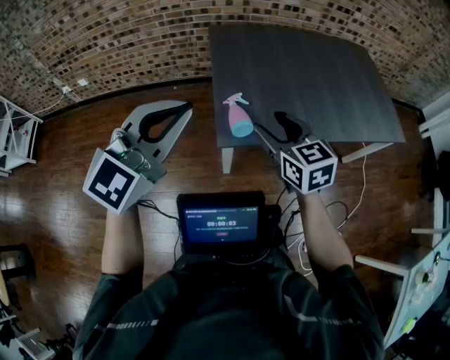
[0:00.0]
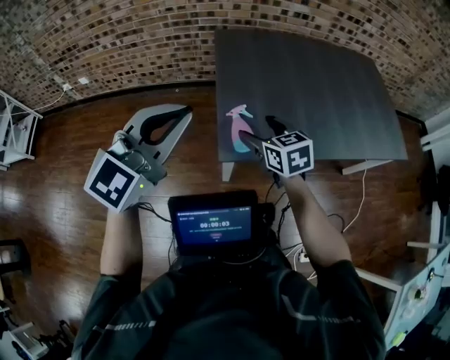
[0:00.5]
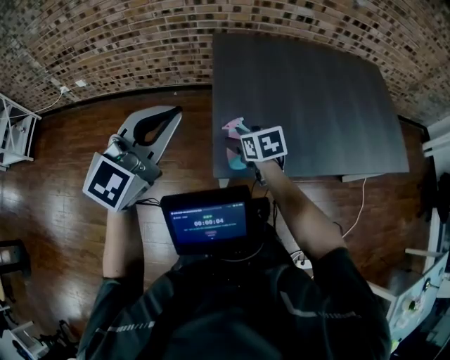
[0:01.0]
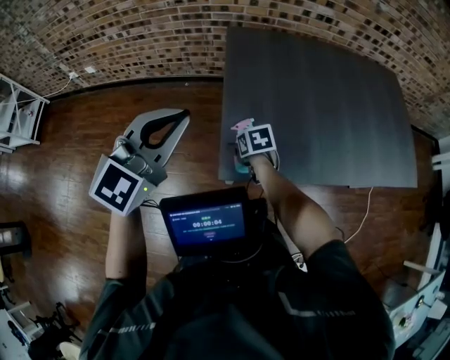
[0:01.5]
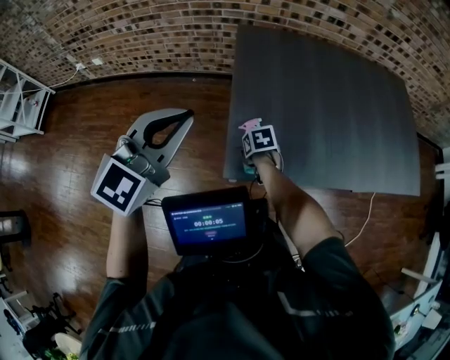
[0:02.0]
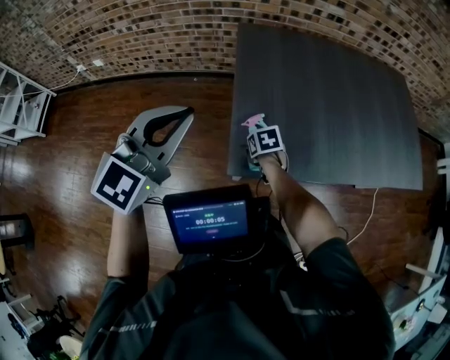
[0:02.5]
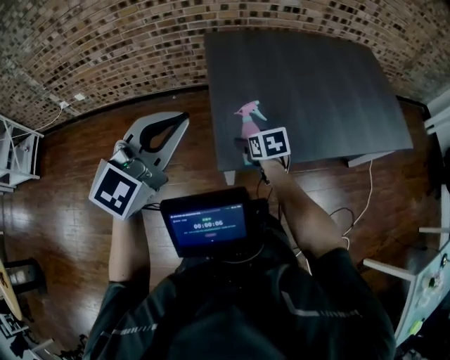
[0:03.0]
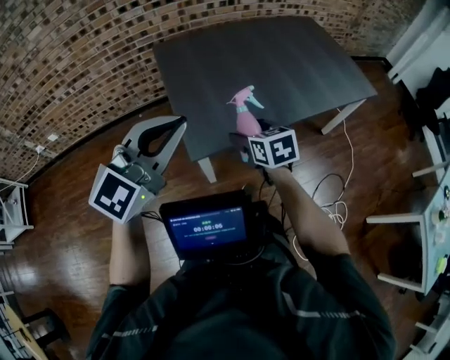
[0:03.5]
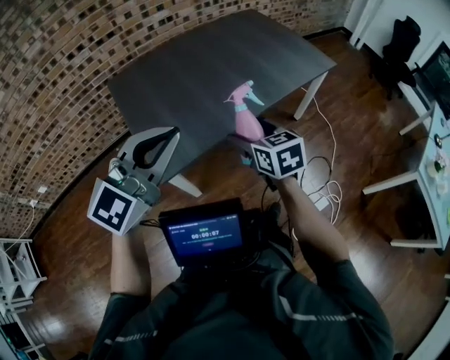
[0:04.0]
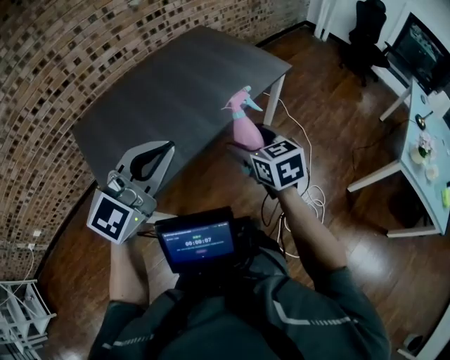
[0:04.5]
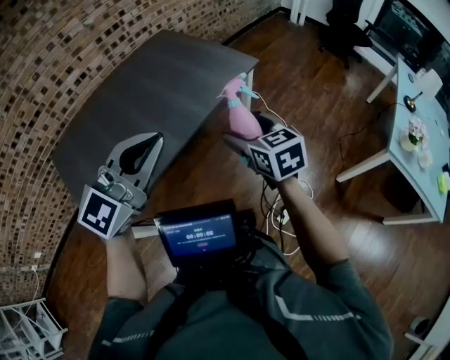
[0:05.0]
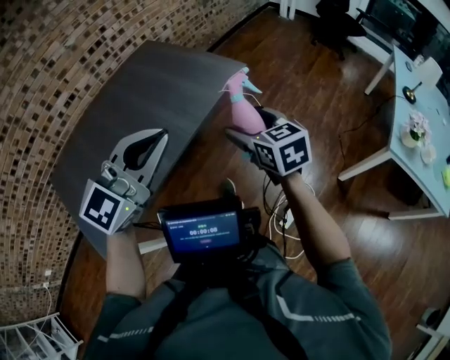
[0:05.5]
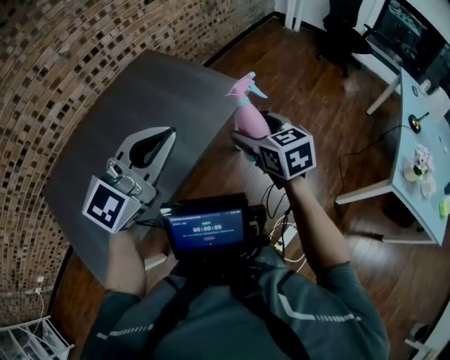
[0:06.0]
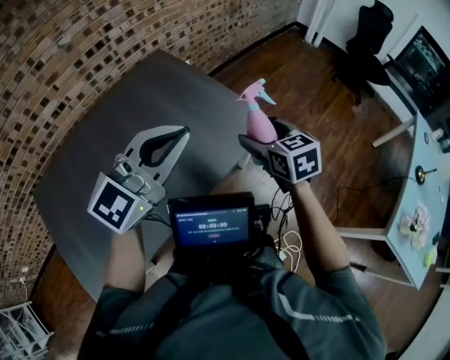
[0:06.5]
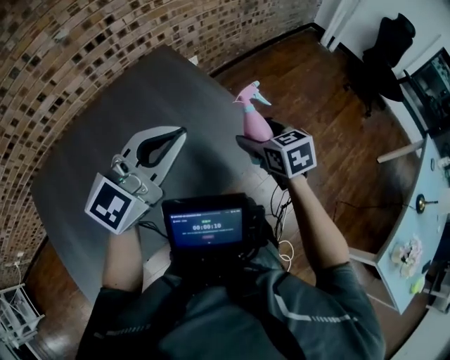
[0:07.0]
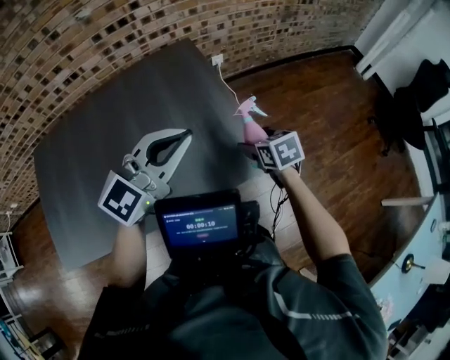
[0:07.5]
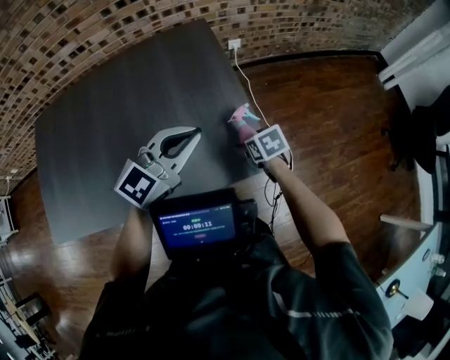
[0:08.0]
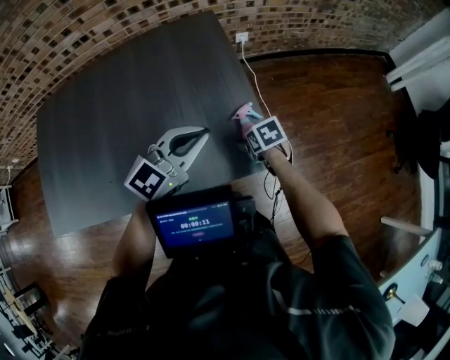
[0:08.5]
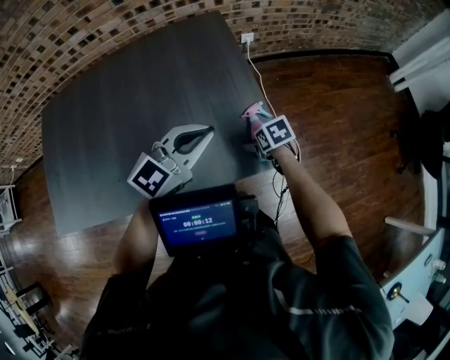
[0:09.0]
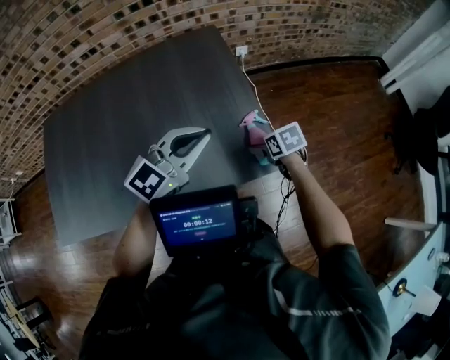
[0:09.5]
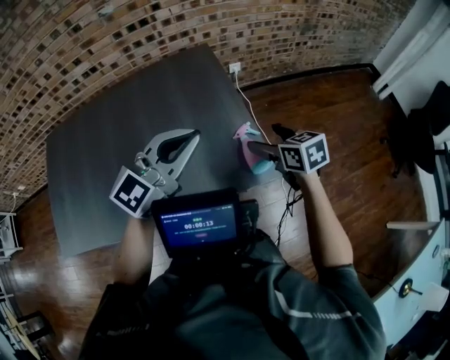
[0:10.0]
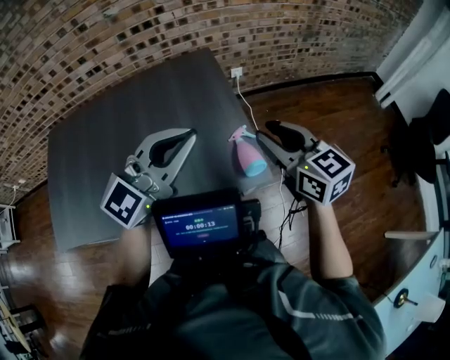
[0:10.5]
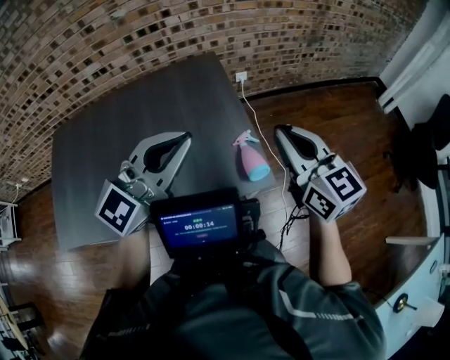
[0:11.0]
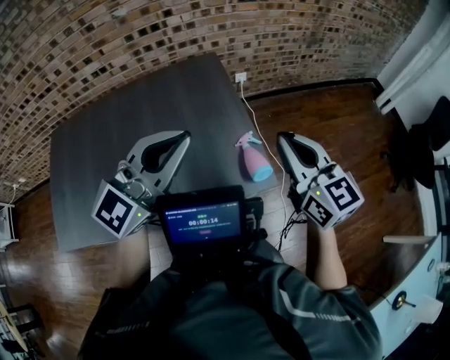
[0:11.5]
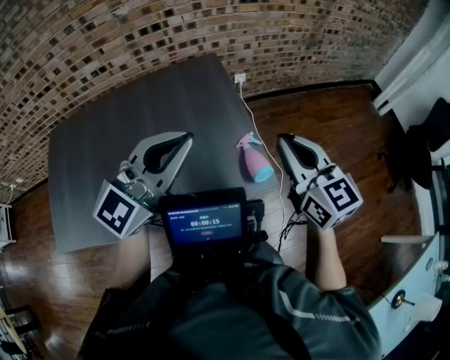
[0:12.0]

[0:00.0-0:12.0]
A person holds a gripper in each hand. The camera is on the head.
0:00.0 to 0:02.0: The left gripper moves about 15 cm, while the right gripper goes approximately 30 cm downward, and angles its fingers downward, by some 50 degrees.
0:02.0 to 0:04.0: The left gripper changes place by roughly 30 cm, and swivels roughly 40 degrees; the right gripper moves some 40 cm, and points its fingers roughly 40 degrees further upward.
0:04.0 to 0:06.0: The two grippers travel together, forward and to the right, about 50 cm.
0:06.0 to 0:08.0: The left gripper moves some 40 cm, and turns by some 30 degrees. The right gripper shifts by roughly 40 cm, and points its fingers about 40 degrees further downward.
0:08.0 to 0:10.0: The left gripper shifts some 10 cm upward; the right gripper moves upward, roughly 20 cm, and rotates roughly 30 degrees.
0:10.0 to 0:12.0: The left gripper is displaced upward by about 10 cm; the right gripper is displaced upward by about 15 cm, rotates some 30 degrees, and closes.

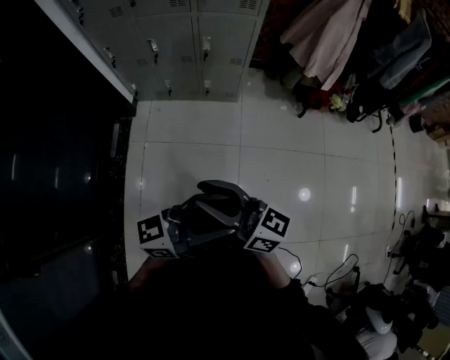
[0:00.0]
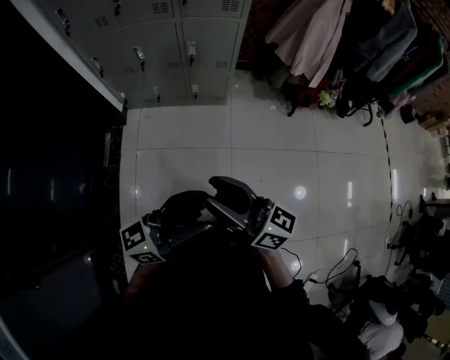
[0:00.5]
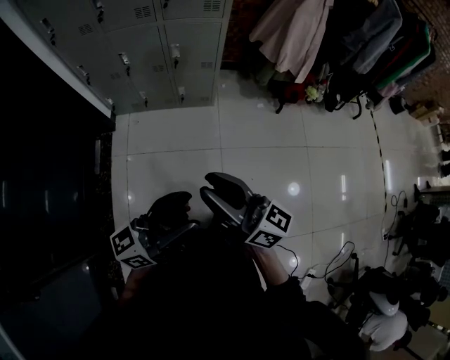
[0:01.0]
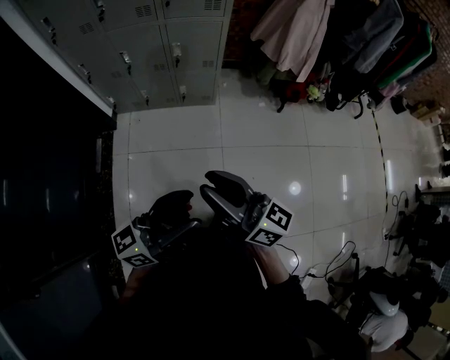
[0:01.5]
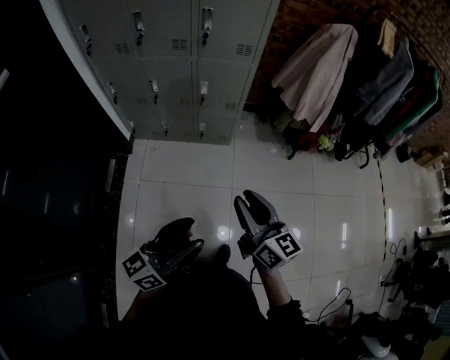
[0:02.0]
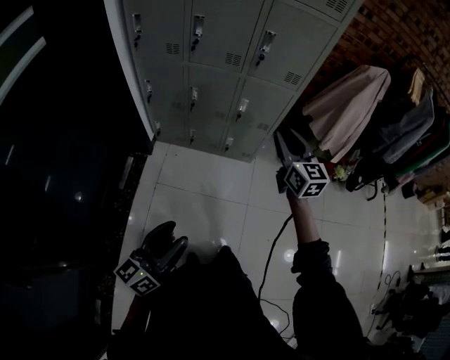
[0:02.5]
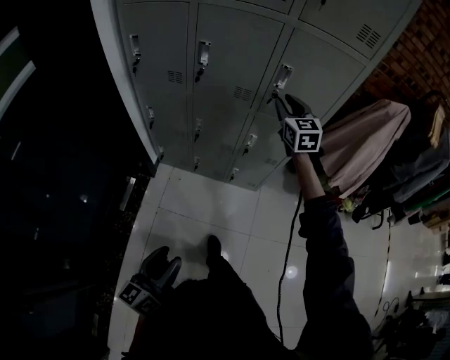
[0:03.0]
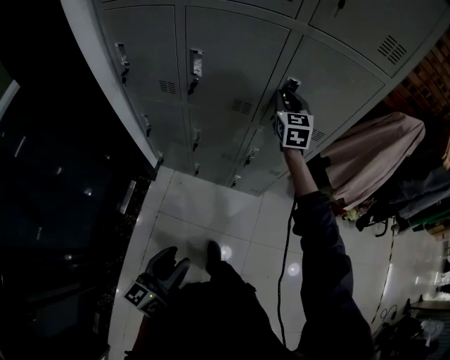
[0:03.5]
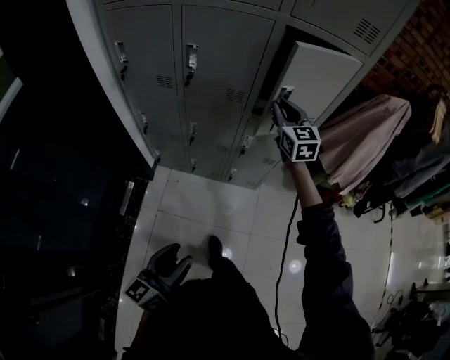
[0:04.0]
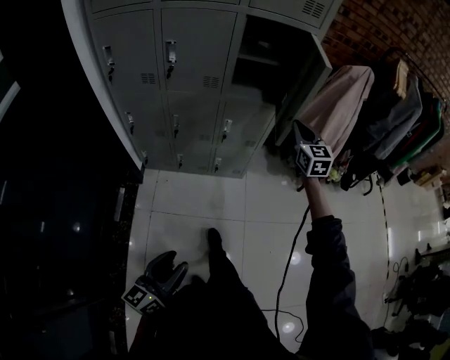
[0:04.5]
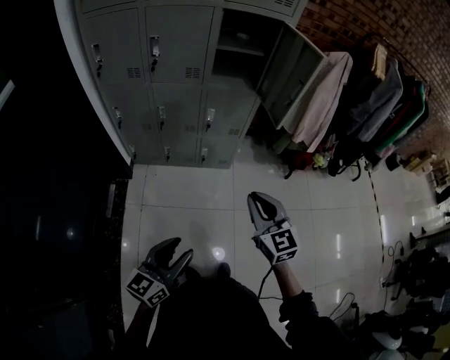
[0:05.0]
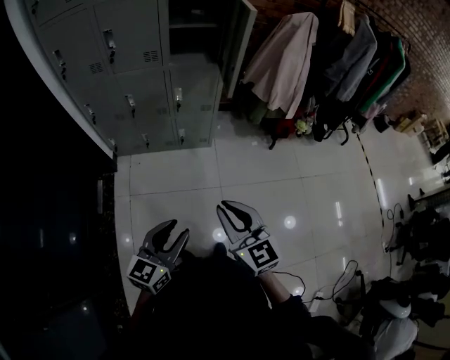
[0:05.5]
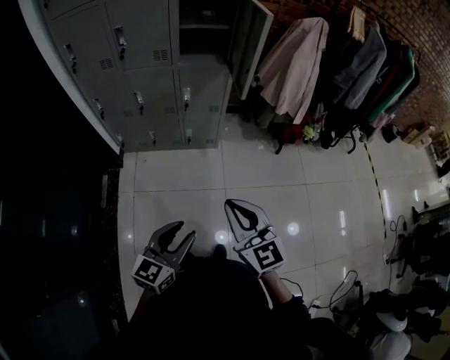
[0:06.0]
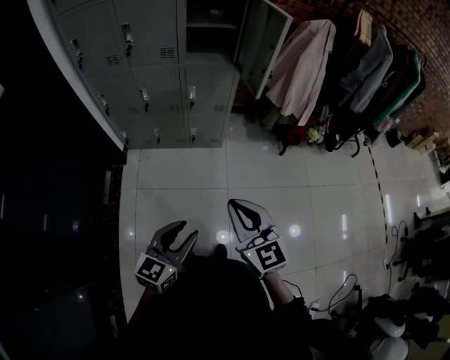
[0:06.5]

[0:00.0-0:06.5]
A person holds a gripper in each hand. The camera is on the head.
0:00.0 to 0:02.0: The left gripper moves to the left, about 5 cm, and turns by approximately 20 degrees; the right gripper shifts about 15 cm to the right and forward, and changes its angle by approximately 30 degrees.
0:02.0 to 0:04.5: The left gripper shifts about 20 cm to the left and downward, travels forward and back again, approximately 25 cm each way, and turns by roughly 20 degrees. The right gripper heads forward, covering roughly 40 cm, rotates approximately 40 degrees, and closes.
0:04.5 to 0:06.5: The right gripper goes approximately 40 cm backward; the left gripper heads to the right, covering approximately 15 cm, and changes its angle by roughly 30 degrees.

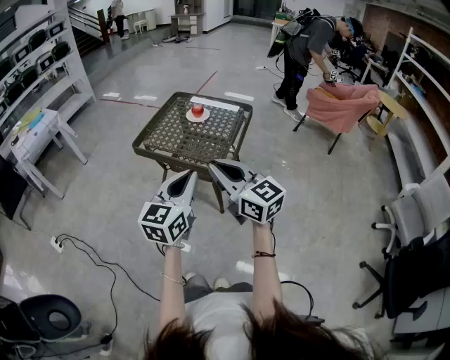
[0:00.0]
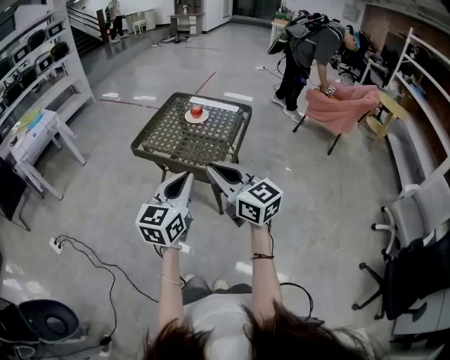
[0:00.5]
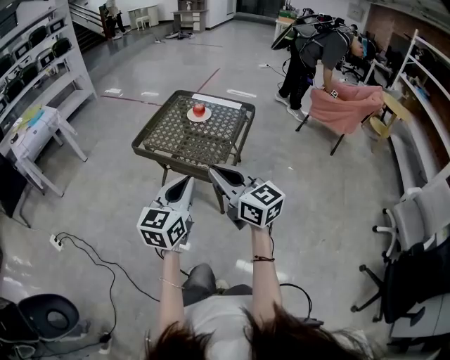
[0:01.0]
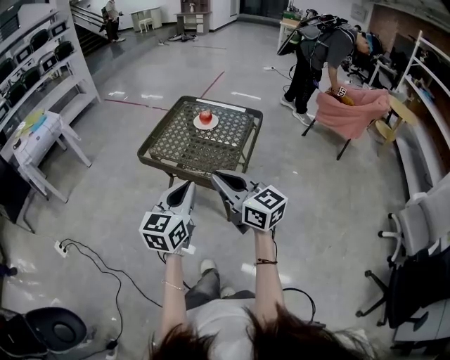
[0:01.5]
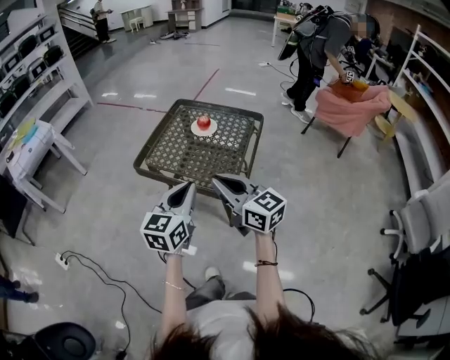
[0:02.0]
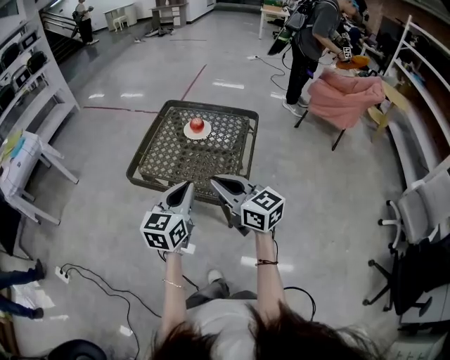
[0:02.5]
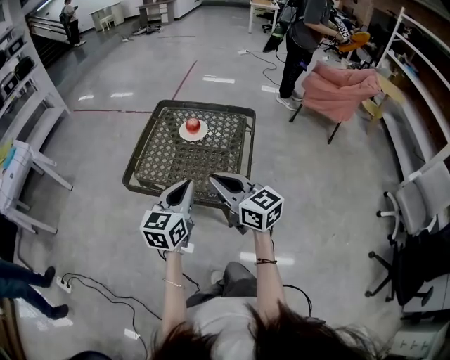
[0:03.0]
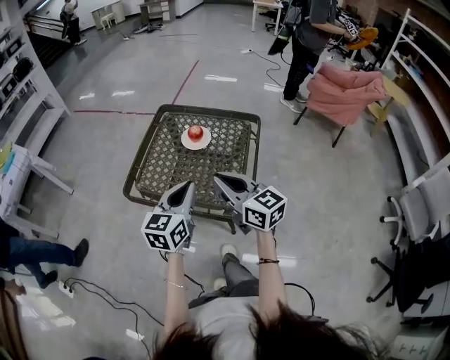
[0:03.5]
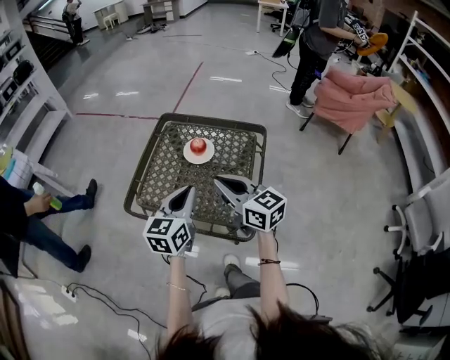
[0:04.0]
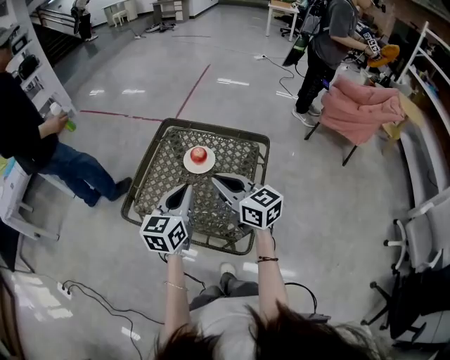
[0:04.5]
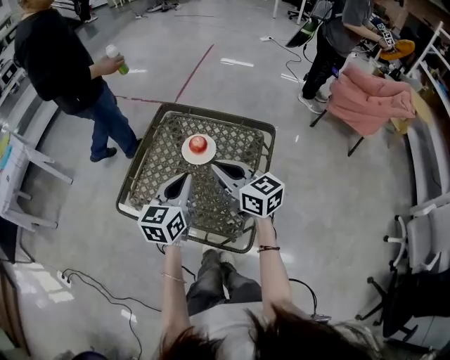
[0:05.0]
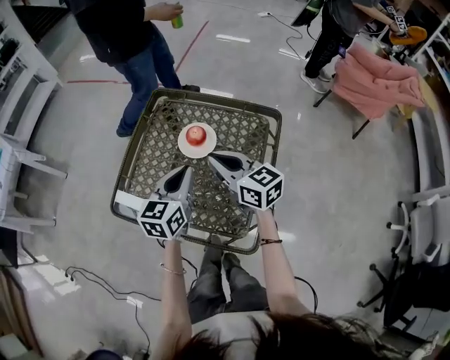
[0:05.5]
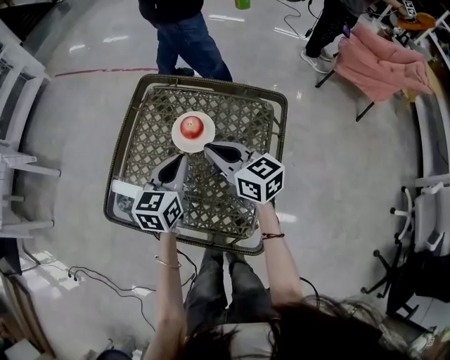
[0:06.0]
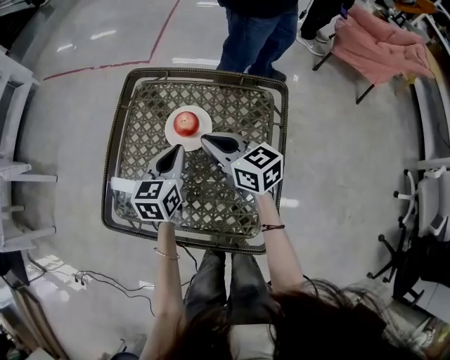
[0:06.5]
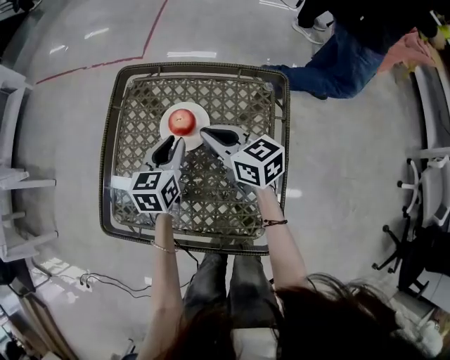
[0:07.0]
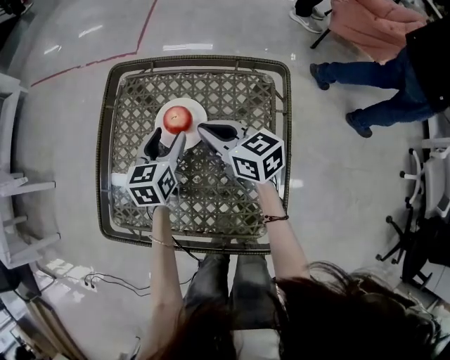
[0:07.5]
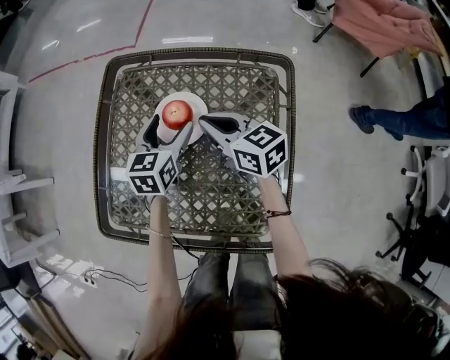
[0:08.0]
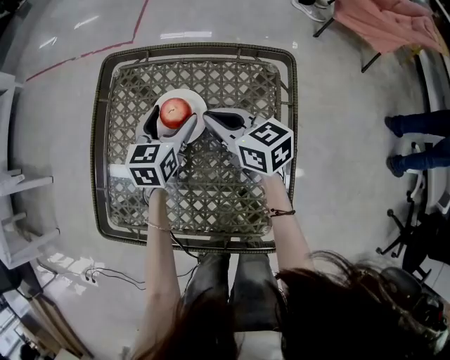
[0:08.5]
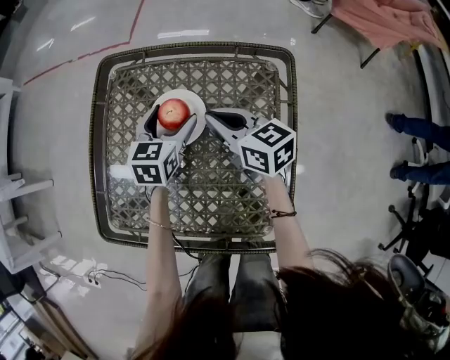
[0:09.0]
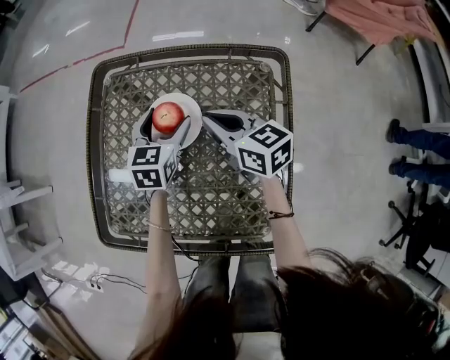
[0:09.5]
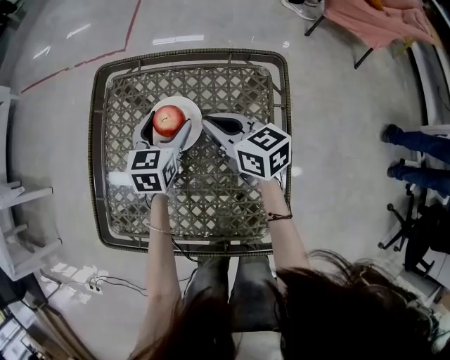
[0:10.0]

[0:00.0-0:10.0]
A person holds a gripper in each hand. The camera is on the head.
0:00.0 to 0:02.0: The grippers both shift forward by some 15 cm.
0:02.0 to 0:04.0: Both grippers travel together forward, approximately 25 cm.
0:04.0 to 0:06.0: The grippers both shift forward and downward by approximately 25 cm.
0:06.0 to 0:08.0: The left gripper is displaced forward and downward by approximately 15 cm, and opens up. Meanwhile the right gripper shifts some 10 cm downward and forward.
0:08.0 to 0:10.0: The grippers move only a little.
